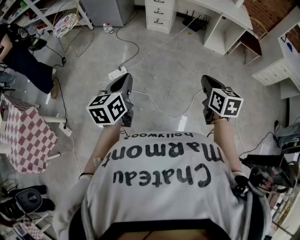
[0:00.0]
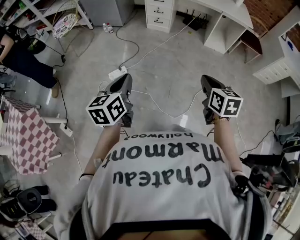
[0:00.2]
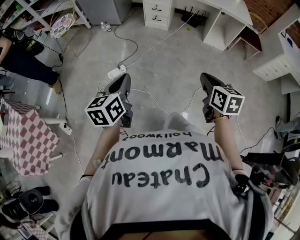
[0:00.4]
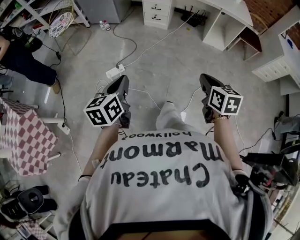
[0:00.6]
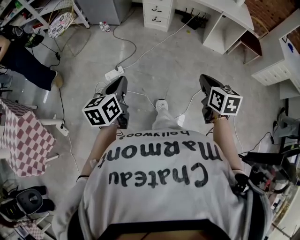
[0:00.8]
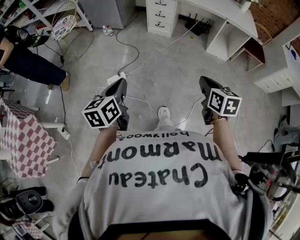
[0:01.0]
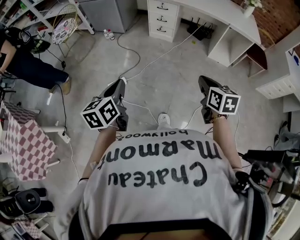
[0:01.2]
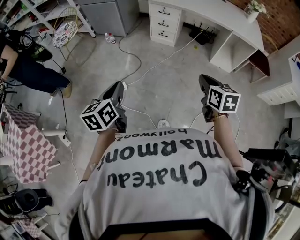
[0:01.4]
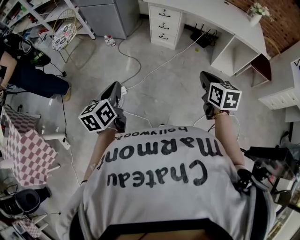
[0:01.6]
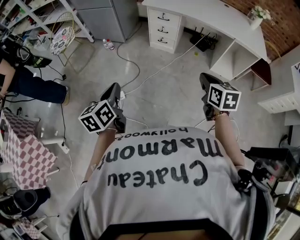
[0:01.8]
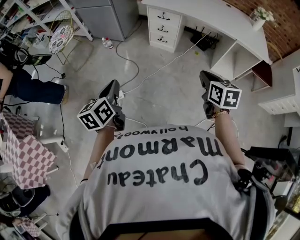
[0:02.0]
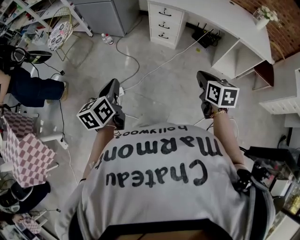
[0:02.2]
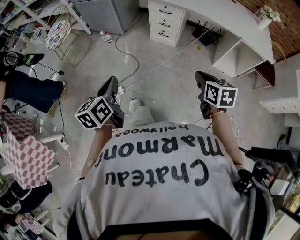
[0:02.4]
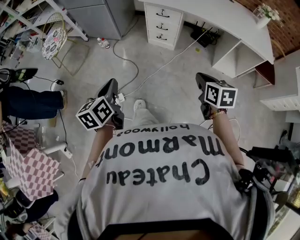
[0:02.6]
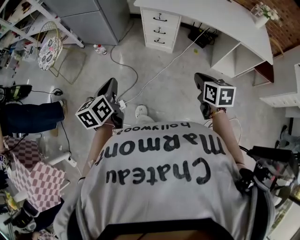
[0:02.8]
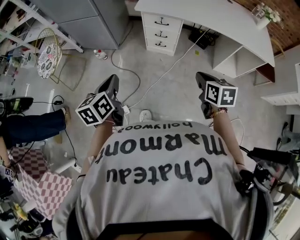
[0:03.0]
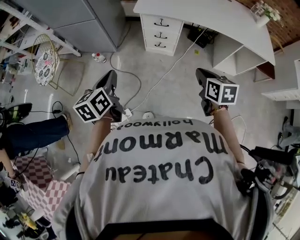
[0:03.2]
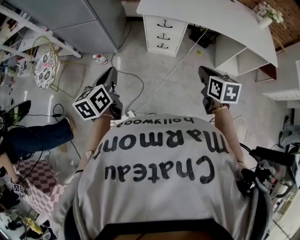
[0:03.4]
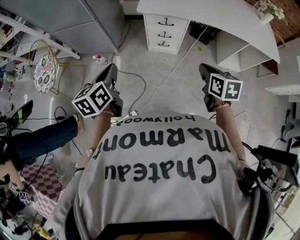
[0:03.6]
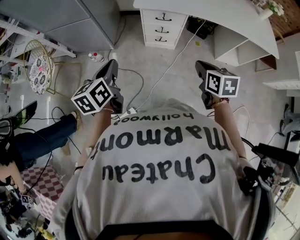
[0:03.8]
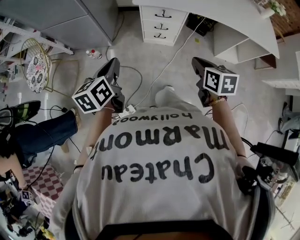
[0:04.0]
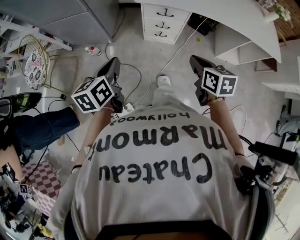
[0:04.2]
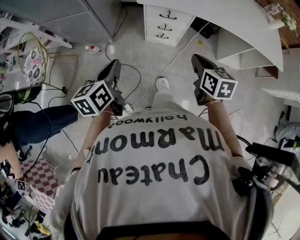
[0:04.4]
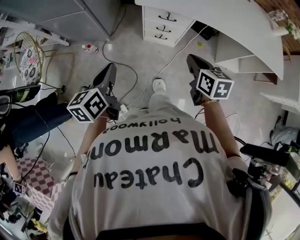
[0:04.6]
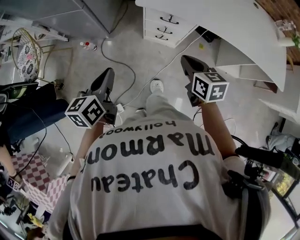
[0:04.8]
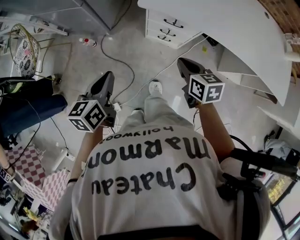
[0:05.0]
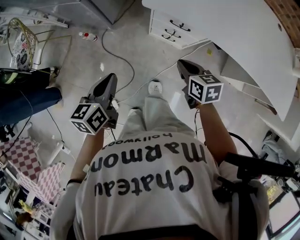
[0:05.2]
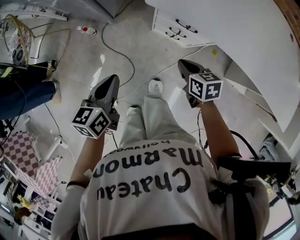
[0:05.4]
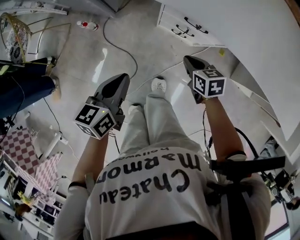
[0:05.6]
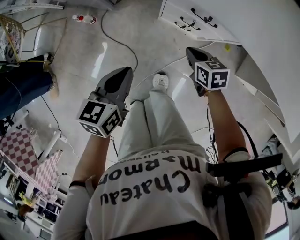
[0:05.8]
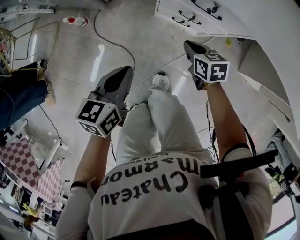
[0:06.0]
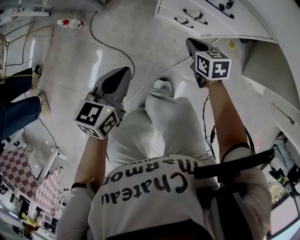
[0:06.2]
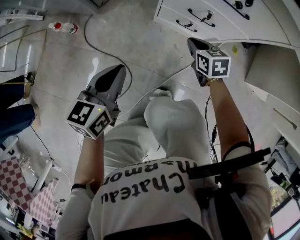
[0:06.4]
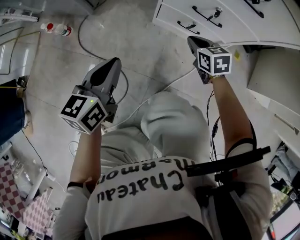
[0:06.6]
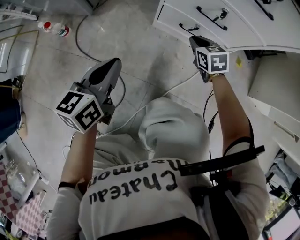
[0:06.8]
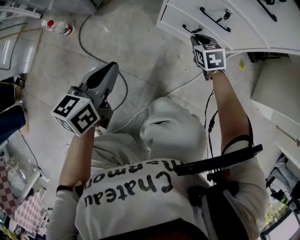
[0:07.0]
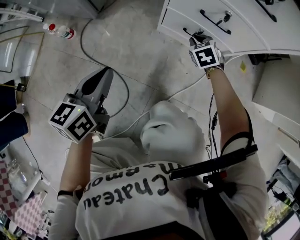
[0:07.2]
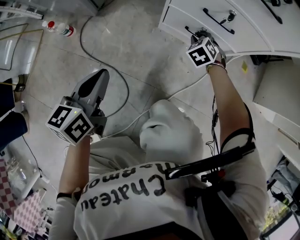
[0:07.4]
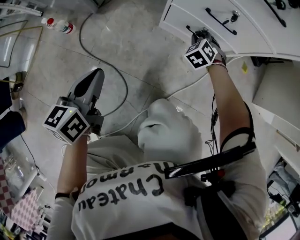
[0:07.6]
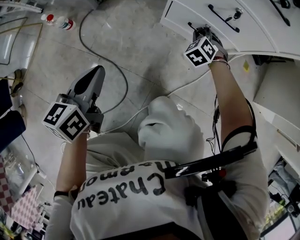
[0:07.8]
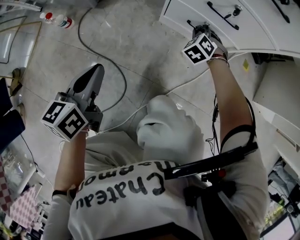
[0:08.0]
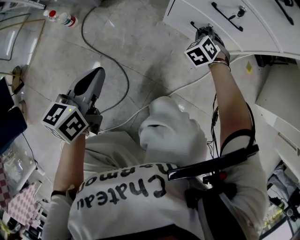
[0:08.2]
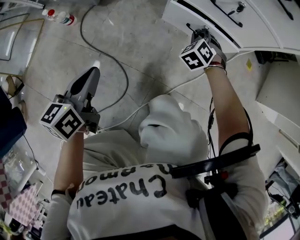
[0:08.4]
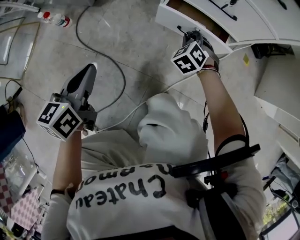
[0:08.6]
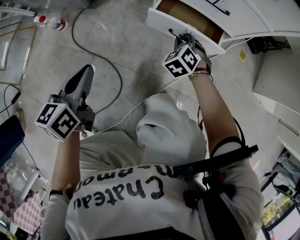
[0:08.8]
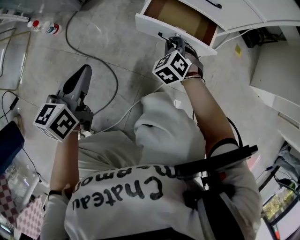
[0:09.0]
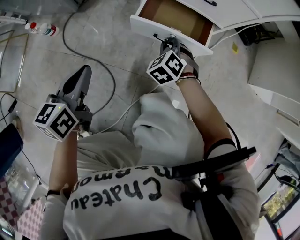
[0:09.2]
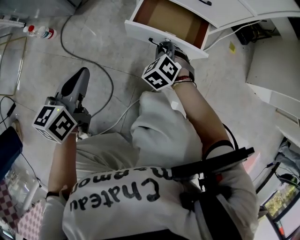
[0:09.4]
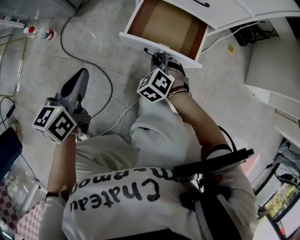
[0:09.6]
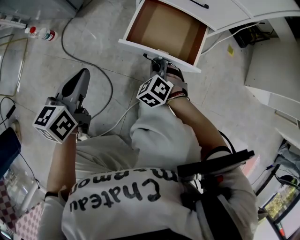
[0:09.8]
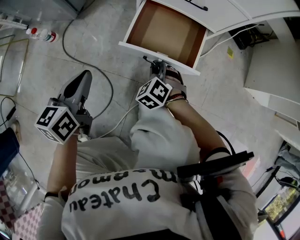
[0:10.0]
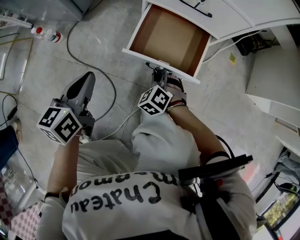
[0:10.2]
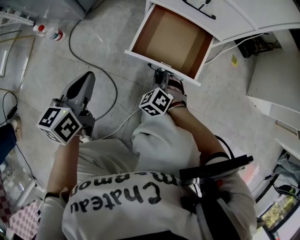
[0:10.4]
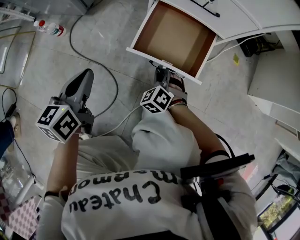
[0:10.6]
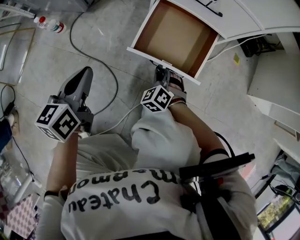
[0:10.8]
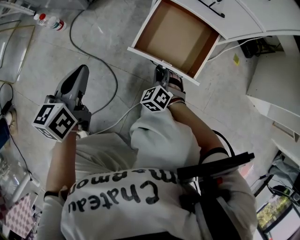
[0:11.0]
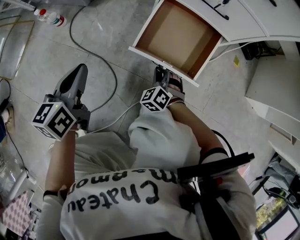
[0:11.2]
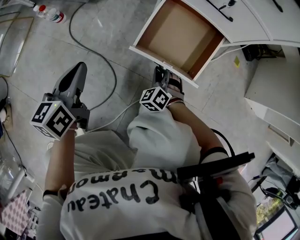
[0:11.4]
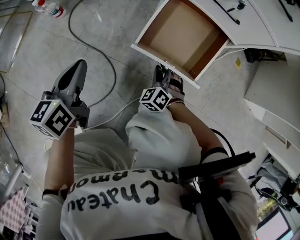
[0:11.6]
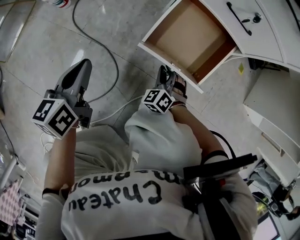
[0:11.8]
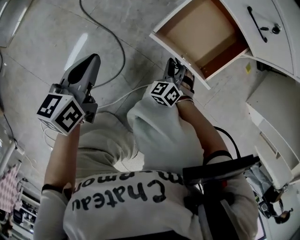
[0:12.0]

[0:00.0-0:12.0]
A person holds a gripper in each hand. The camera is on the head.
0:00.0 to 0:01.6: The two grippers go some 30 cm forward.
0:01.6 to 0:03.0: Both grippers move forward, some 30 cm.
0:03.0 to 0:04.4: The right gripper moves forward and to the left, about 20 cm. The left gripper travels forward by some 20 cm.
0:04.4 to 0:06.0: The grippers both shift downward and forward by about 40 cm. The right gripper rotates roughly 30 degrees.
0:06.0 to 0:07.6: The left gripper moves downward, roughly 25 cm; the right gripper goes approximately 30 cm downward and forward, and rolls counterclockwise, seen from behind, by roughly 50 degrees.
0:07.6 to 0:09.0: The right gripper moves backward, roughly 10 cm.
0:09.0 to 0:10.4: The right gripper travels backward by about 10 cm.
0:10.4 to 0:12.0: The left gripper travels downward by roughly 5 cm.

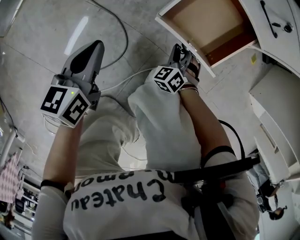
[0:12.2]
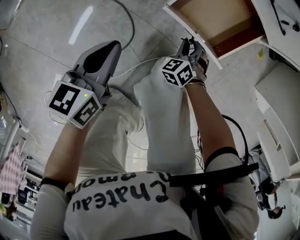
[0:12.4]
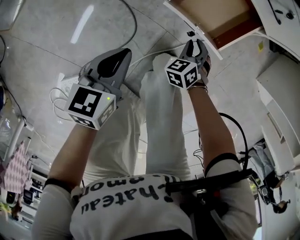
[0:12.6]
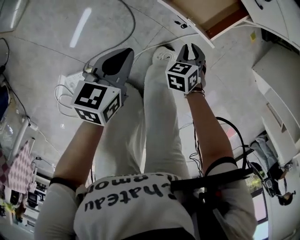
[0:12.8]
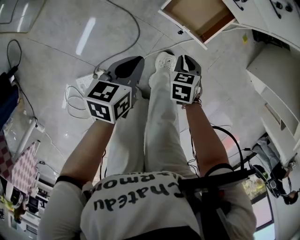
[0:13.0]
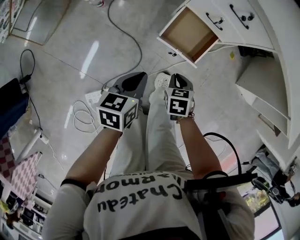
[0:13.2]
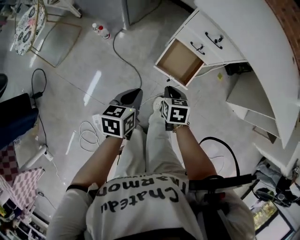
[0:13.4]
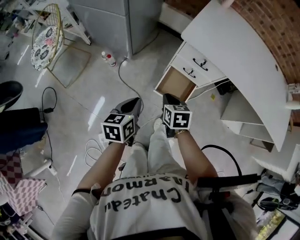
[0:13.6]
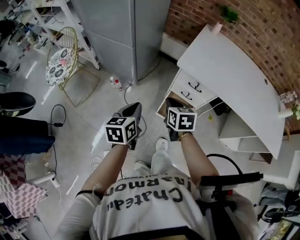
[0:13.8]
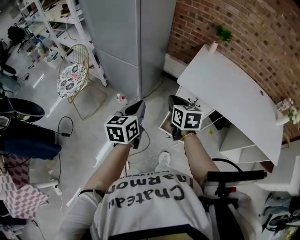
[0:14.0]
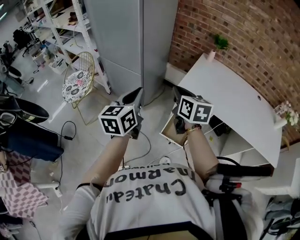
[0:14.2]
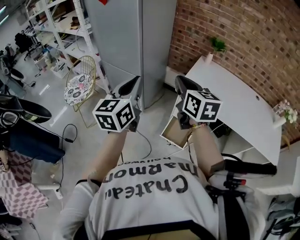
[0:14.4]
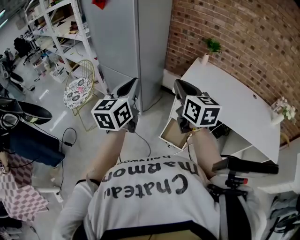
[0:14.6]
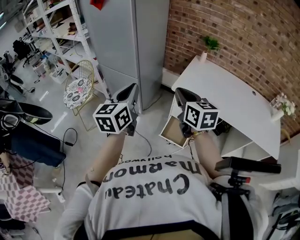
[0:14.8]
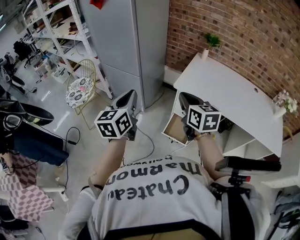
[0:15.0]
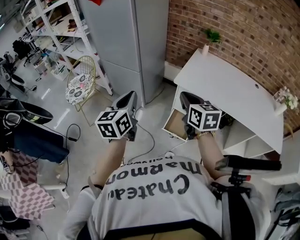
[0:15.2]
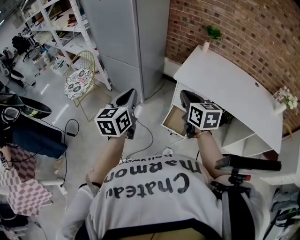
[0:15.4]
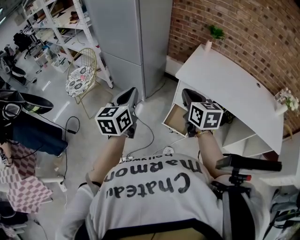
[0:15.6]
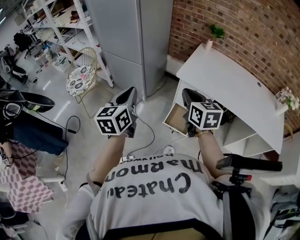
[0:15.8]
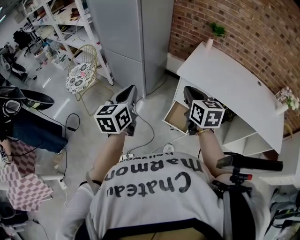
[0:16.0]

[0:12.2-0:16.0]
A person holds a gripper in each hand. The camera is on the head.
0:12.2 to 0:13.4: Both grippers travel together upward, about 35 cm. The right gripper rotates around the line of its fingers by roughly 50 degrees, clockwise from behind.
0:13.4 to 0:14.8: Both grippers move upward, approximately 50 cm. The right gripper angles its fingers upward, by about 50 degrees. Meanwhile the left gripper angles its fingers upward, by approximately 40 degrees.
0:14.8 to 0:16.0: The two grippers go approximately 5 cm downward.

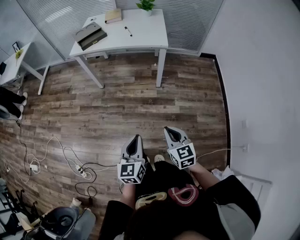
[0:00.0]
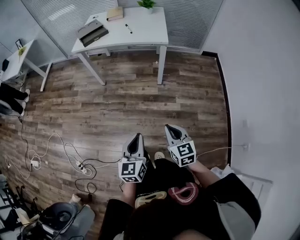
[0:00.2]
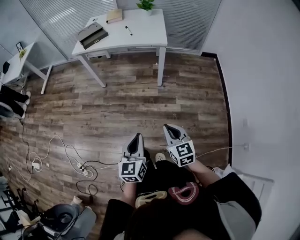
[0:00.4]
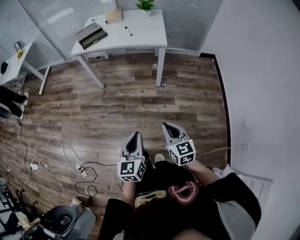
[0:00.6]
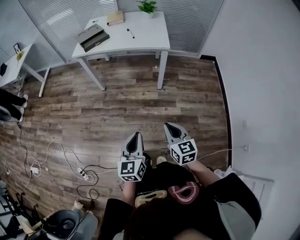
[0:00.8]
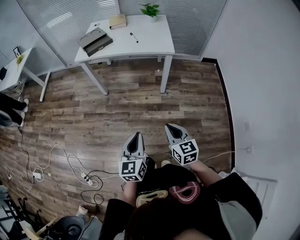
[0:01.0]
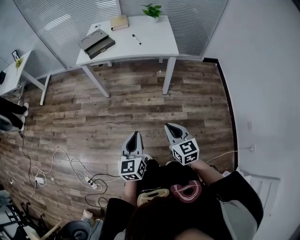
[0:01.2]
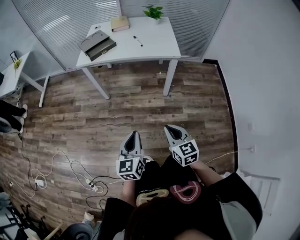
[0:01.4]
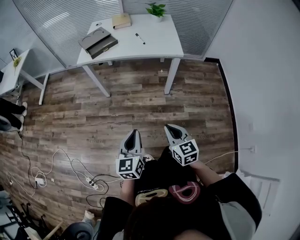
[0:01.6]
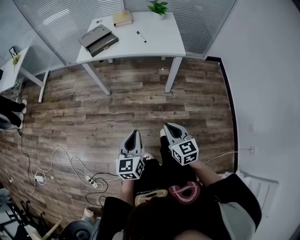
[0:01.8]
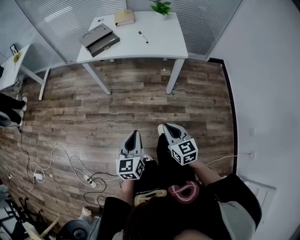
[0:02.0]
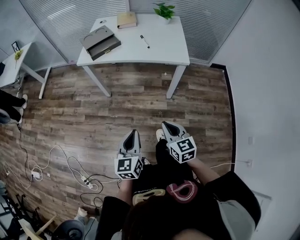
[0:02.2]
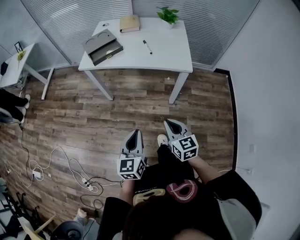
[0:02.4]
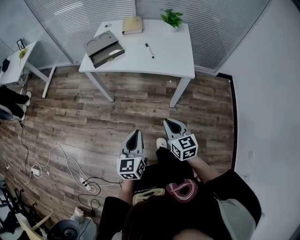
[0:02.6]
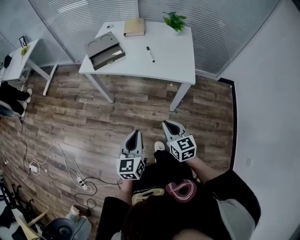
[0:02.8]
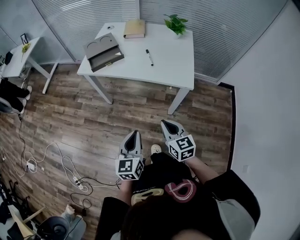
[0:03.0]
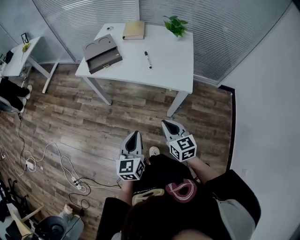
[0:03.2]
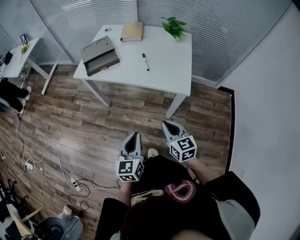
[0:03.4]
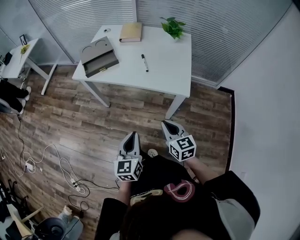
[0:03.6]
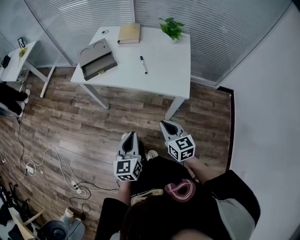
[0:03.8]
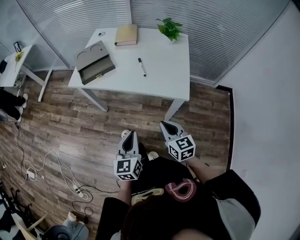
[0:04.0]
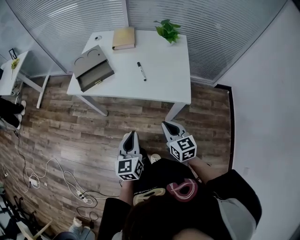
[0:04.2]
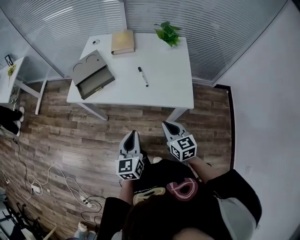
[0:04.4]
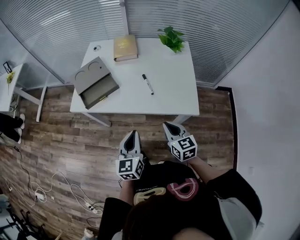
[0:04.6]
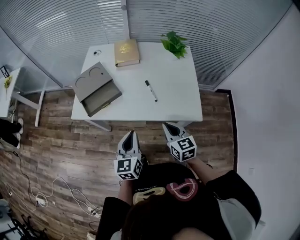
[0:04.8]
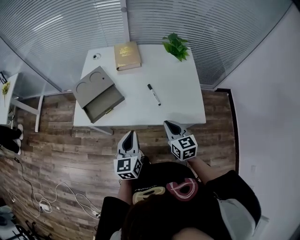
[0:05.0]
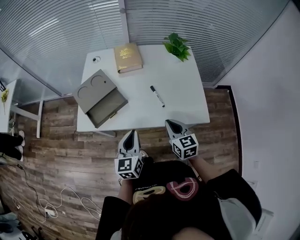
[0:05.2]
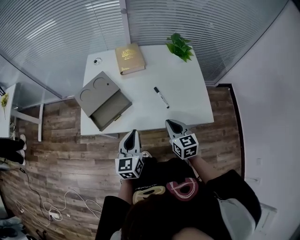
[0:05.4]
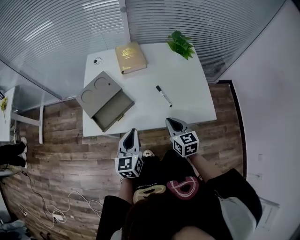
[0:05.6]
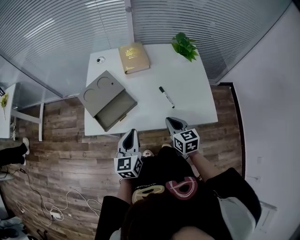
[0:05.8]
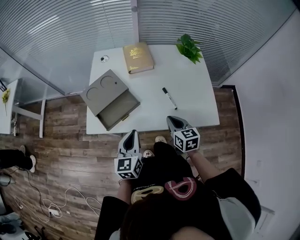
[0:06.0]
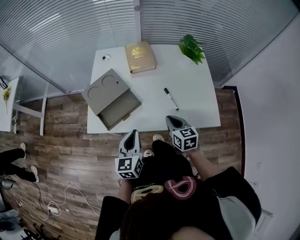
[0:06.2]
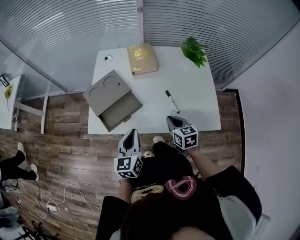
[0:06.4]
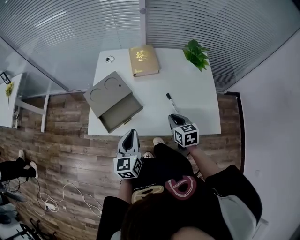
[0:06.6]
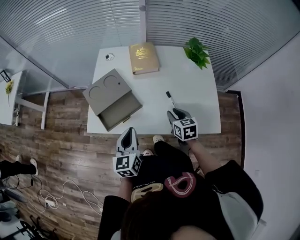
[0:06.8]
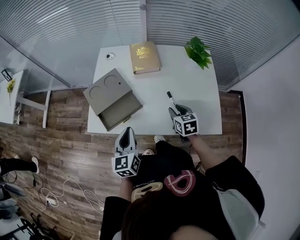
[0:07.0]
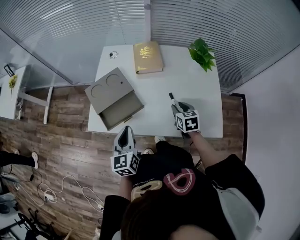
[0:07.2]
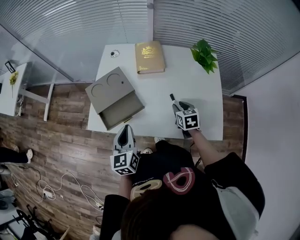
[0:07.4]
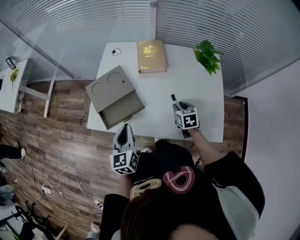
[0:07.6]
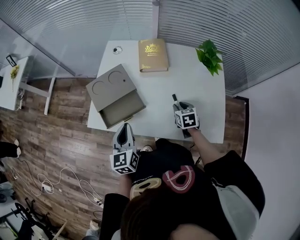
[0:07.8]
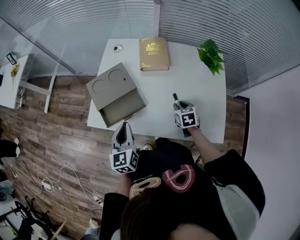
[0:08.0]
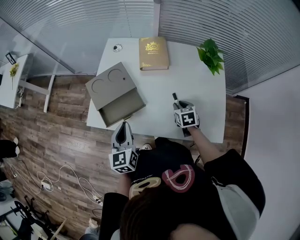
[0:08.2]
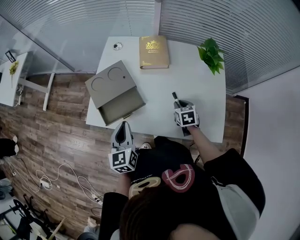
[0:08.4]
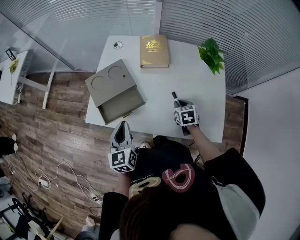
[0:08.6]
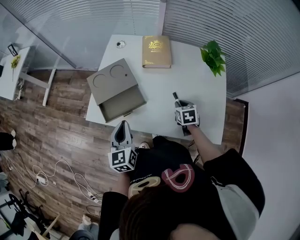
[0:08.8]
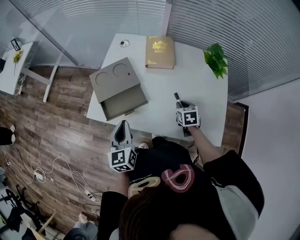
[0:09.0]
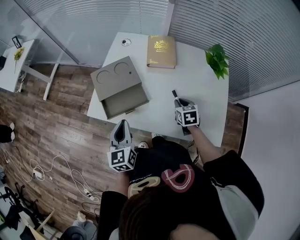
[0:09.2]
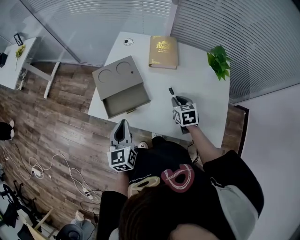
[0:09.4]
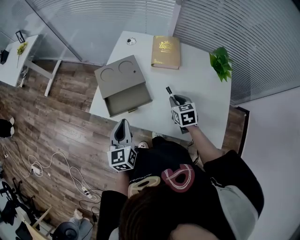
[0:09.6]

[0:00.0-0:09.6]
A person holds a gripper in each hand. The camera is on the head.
0:00.0 to 0:01.6: Both grippers travel together forward and to the left, roughly 15 cm.
0:01.6 to 0:03.2: The two grippers go roughly 25 cm forward and to the right.
0:03.2 to 0:04.8: The grippers both shift forward by about 25 cm.
0:04.8 to 0:06.4: The two grippers go roughly 15 cm forward and to the left.
0:06.4 to 0:08.0: The left gripper is displaced forward by approximately 5 cm. The right gripper moves forward, downward and to the right, roughly 15 cm, and opens its fingers.
0:08.0 to 0:09.6: The right gripper goes about 10 cm to the left and upward.
